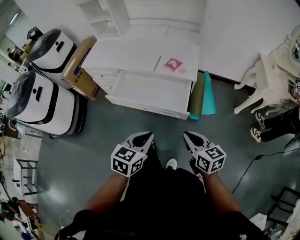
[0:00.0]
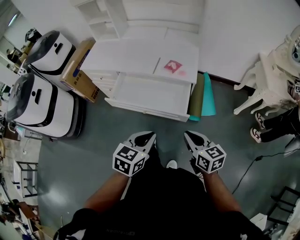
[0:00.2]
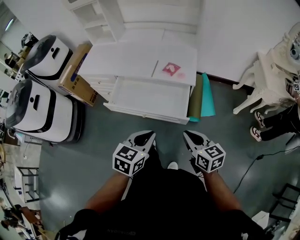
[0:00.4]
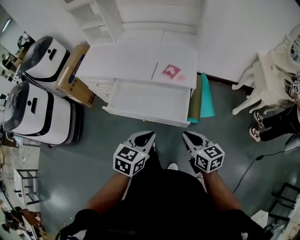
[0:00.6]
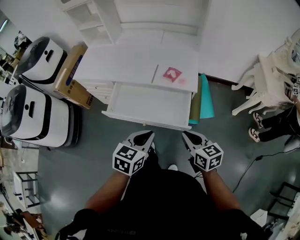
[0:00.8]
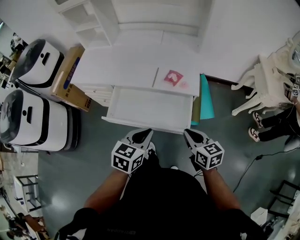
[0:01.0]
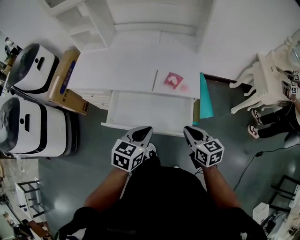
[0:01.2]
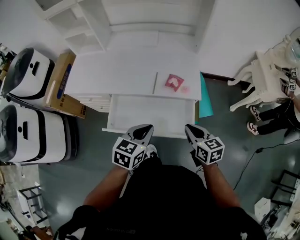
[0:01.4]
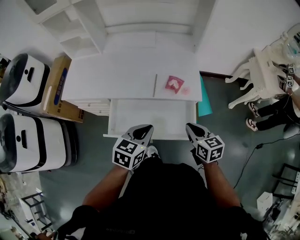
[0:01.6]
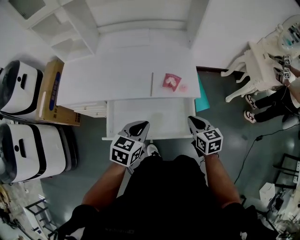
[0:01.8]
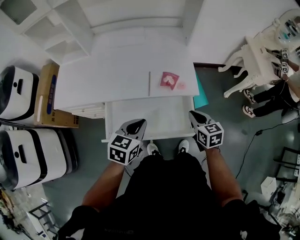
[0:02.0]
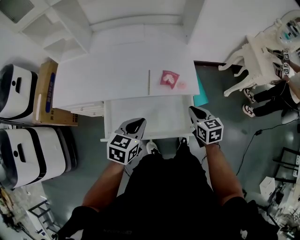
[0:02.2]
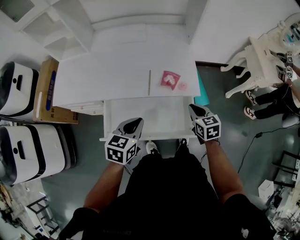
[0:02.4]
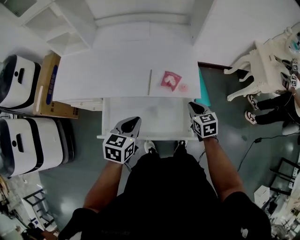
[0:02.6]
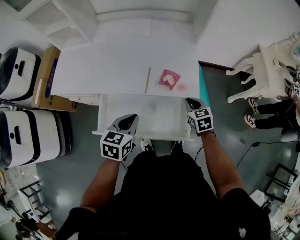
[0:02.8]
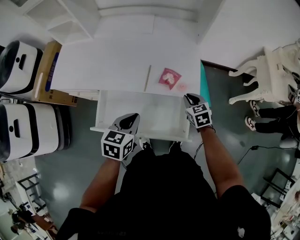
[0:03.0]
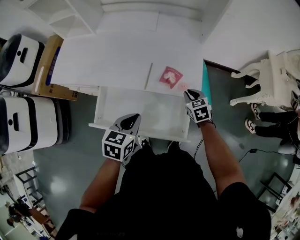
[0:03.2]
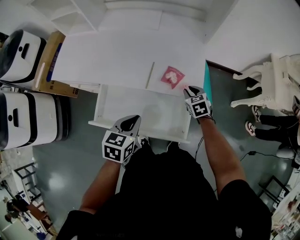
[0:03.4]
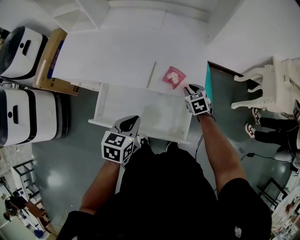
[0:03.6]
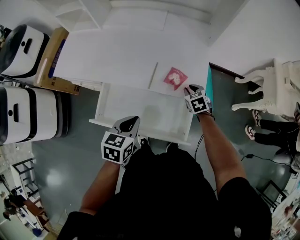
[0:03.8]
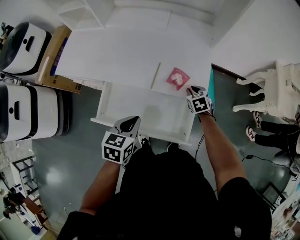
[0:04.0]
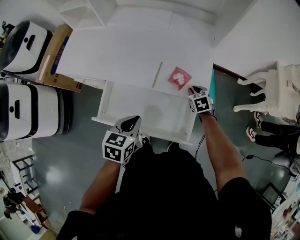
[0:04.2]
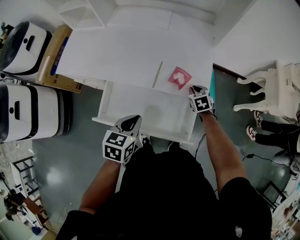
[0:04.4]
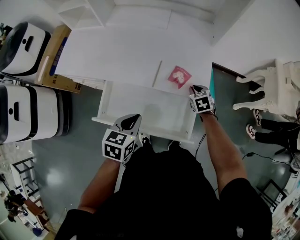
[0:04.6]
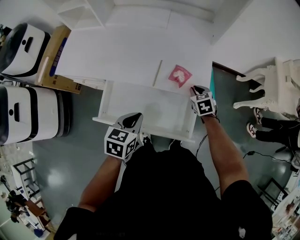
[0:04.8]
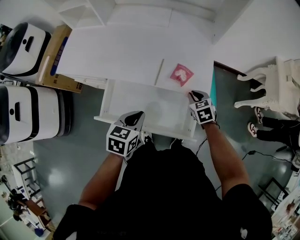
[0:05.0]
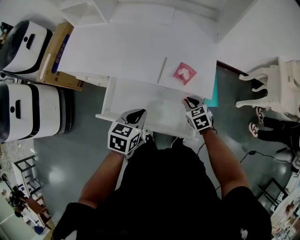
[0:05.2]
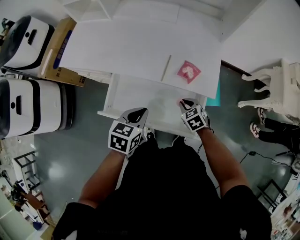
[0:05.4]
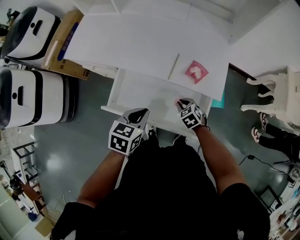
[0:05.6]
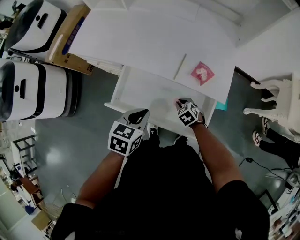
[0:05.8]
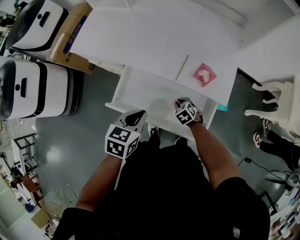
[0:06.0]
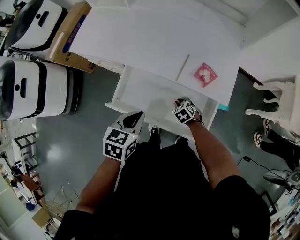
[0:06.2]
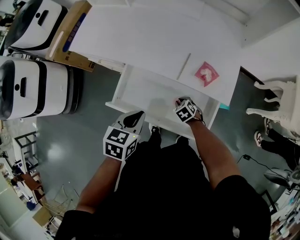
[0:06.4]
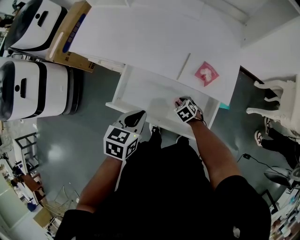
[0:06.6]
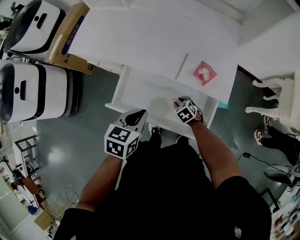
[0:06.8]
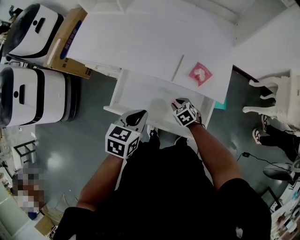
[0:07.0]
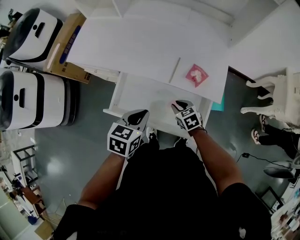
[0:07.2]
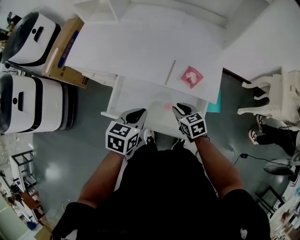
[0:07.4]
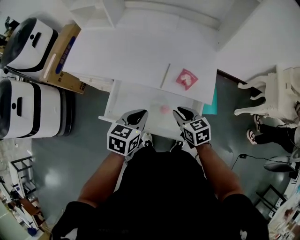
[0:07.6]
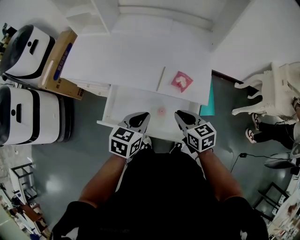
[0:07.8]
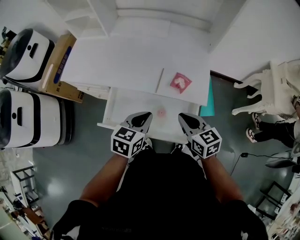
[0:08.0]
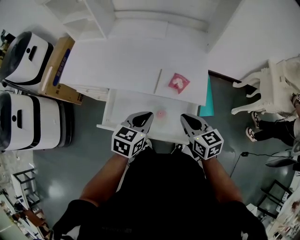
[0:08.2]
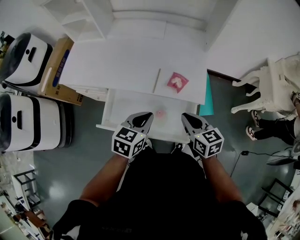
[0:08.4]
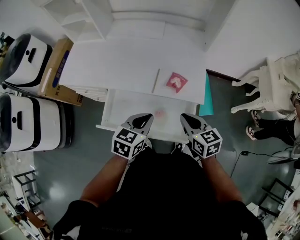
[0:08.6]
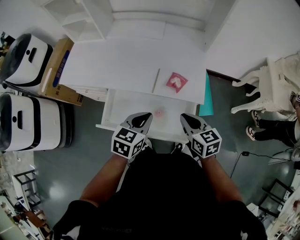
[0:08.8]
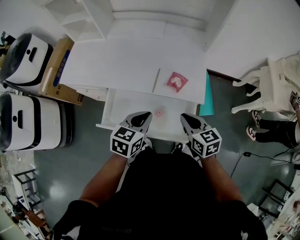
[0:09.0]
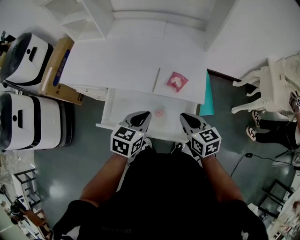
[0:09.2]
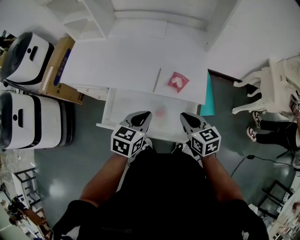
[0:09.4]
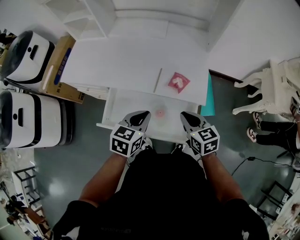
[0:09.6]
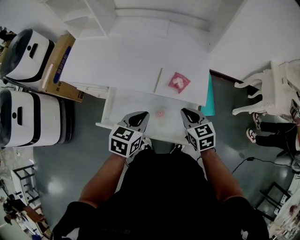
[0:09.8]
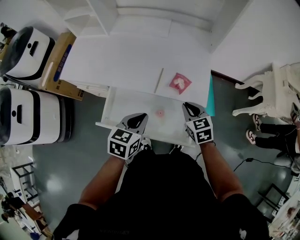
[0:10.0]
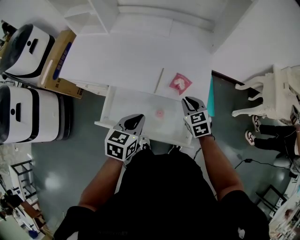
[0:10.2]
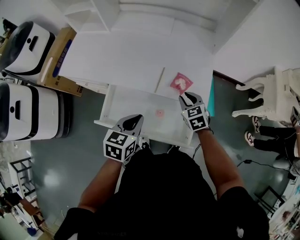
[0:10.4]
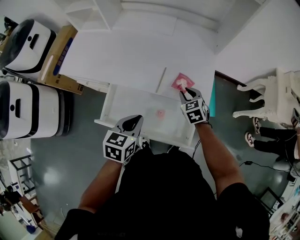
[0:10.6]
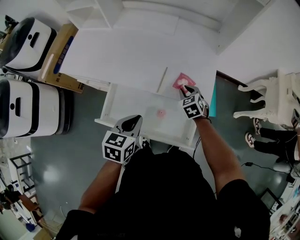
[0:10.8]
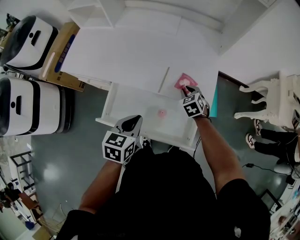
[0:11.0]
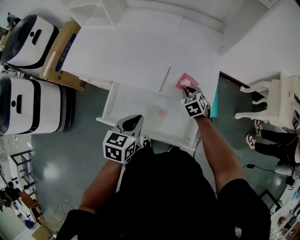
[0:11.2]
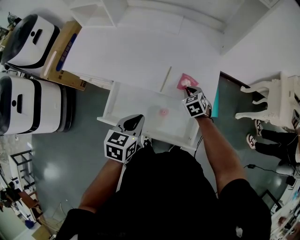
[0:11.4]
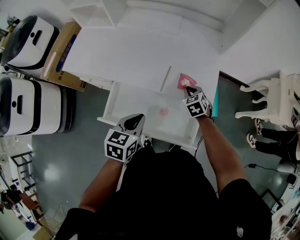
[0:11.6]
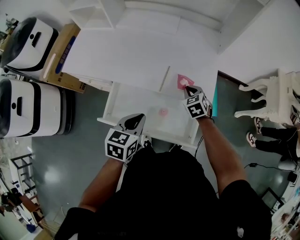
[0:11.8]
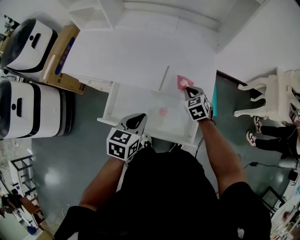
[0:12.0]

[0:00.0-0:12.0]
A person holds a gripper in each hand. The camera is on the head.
0:00.0 to 0:01.6: Both grippers move forward, roughly 25 cm.
0:01.6 to 0:03.0: The right gripper heads forward and downward, covering about 20 cm, and turns by roughly 20 degrees. Meanwhile the left gripper goes some 5 cm forward.
0:03.0 to 0:04.4: The right gripper heads forward and downward, covering about 10 cm.
0:04.4 to 0:06.0: The right gripper is displaced to the left, backward and downward by approximately 25 cm, and swivels about 30 degrees, while the left gripper shifts some 5 cm to the left.
0:06.0 to 0:07.6: The left gripper shifts by roughly 5 cm. Meanwhile the right gripper moves upward, about 20 cm, and turns by some 40 degrees.
0:07.6 to 0:09.0: The right gripper goes roughly 10 cm upward and to the right; the left gripper moves to the right, about 5 cm.
0:09.0 to 0:10.4: The right gripper moves forward and downward, approximately 15 cm, and changes its angle by approximately 30 degrees.

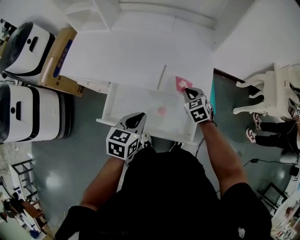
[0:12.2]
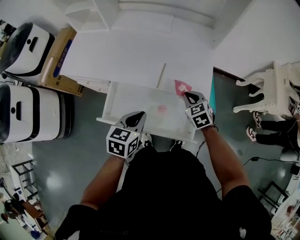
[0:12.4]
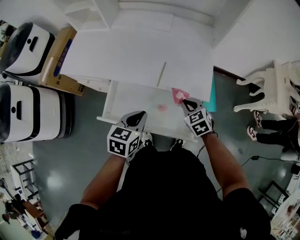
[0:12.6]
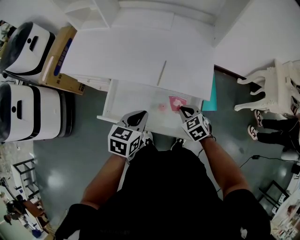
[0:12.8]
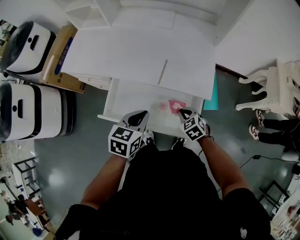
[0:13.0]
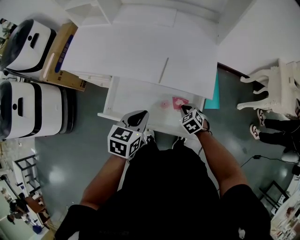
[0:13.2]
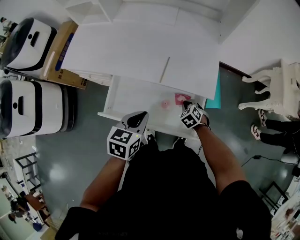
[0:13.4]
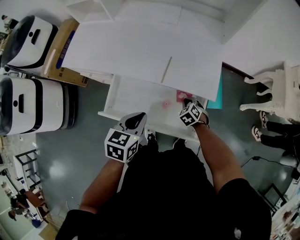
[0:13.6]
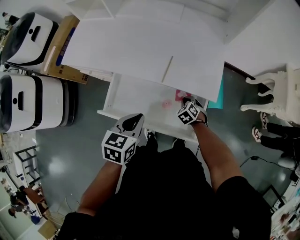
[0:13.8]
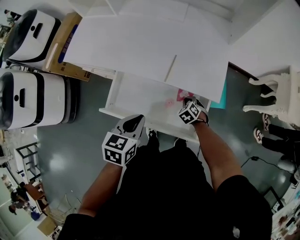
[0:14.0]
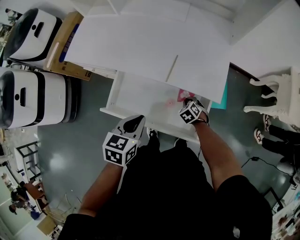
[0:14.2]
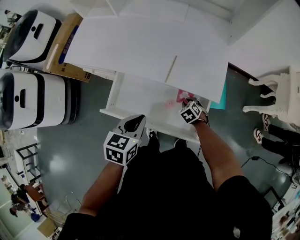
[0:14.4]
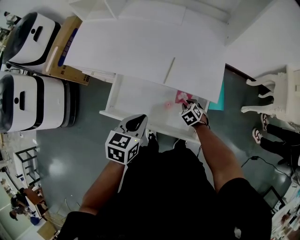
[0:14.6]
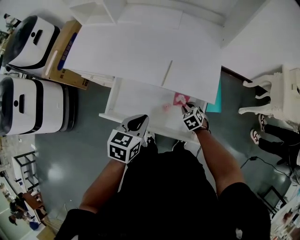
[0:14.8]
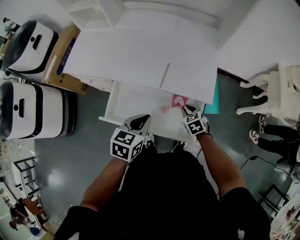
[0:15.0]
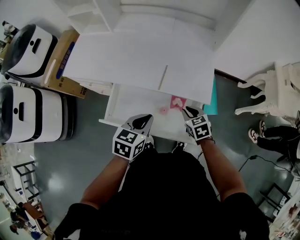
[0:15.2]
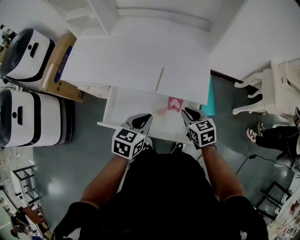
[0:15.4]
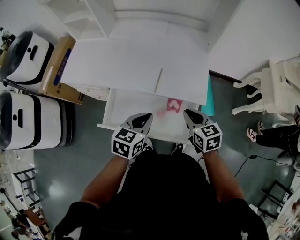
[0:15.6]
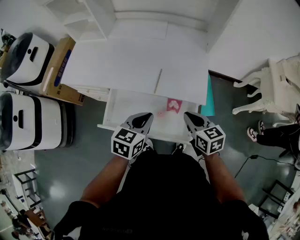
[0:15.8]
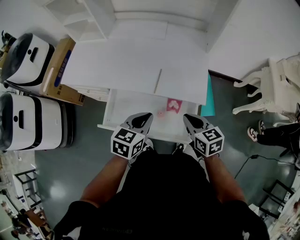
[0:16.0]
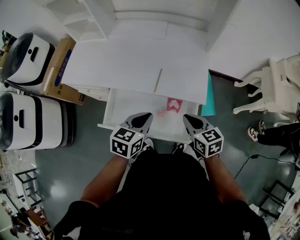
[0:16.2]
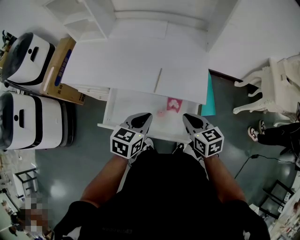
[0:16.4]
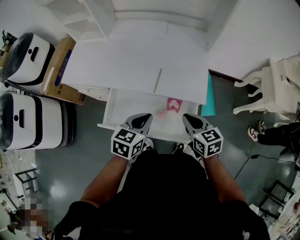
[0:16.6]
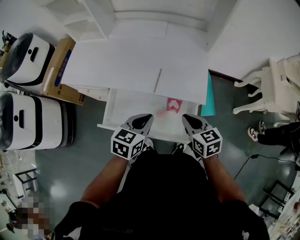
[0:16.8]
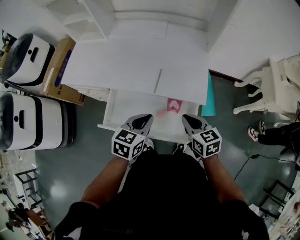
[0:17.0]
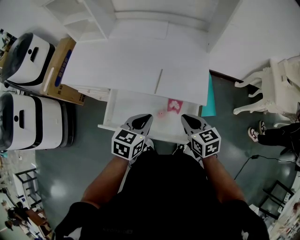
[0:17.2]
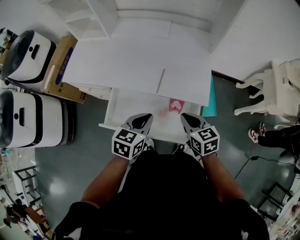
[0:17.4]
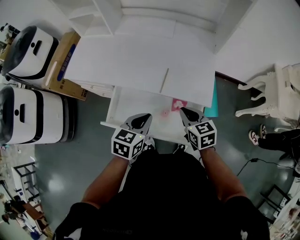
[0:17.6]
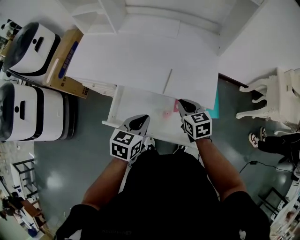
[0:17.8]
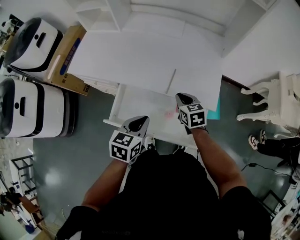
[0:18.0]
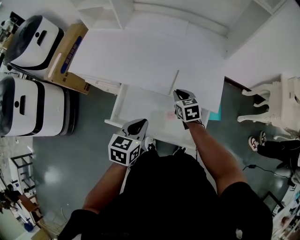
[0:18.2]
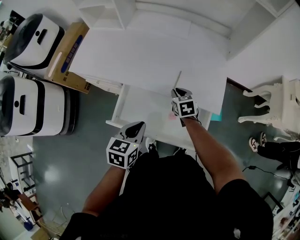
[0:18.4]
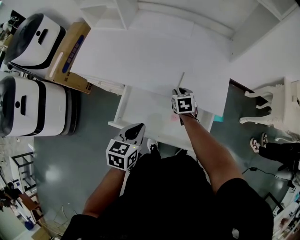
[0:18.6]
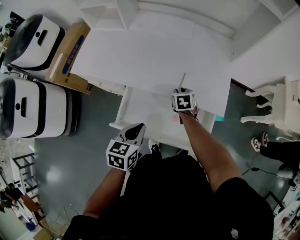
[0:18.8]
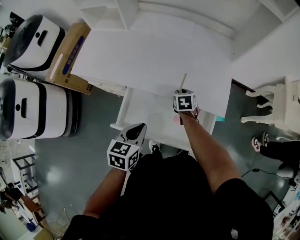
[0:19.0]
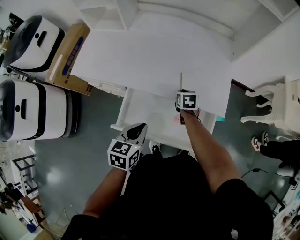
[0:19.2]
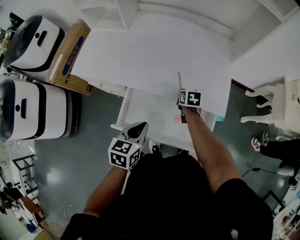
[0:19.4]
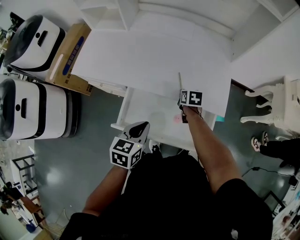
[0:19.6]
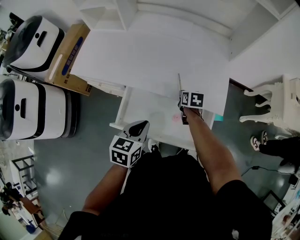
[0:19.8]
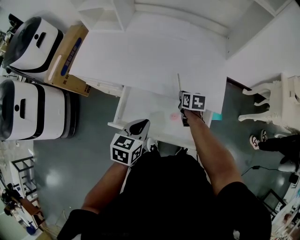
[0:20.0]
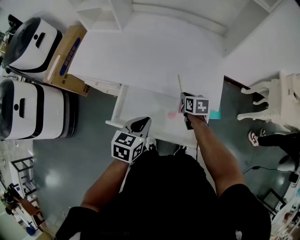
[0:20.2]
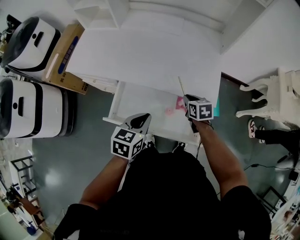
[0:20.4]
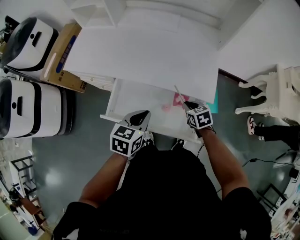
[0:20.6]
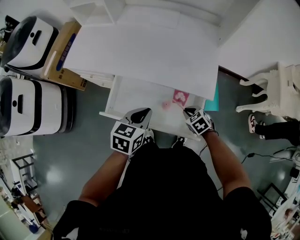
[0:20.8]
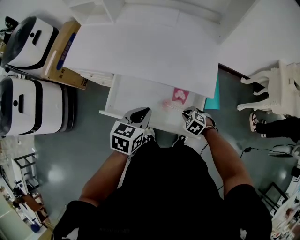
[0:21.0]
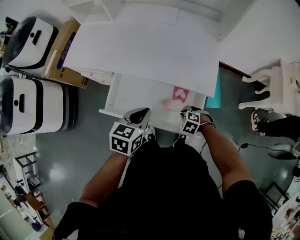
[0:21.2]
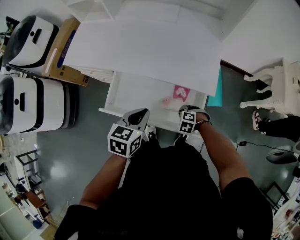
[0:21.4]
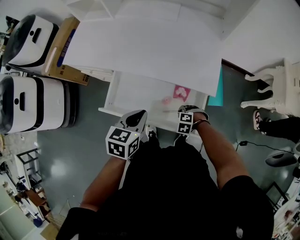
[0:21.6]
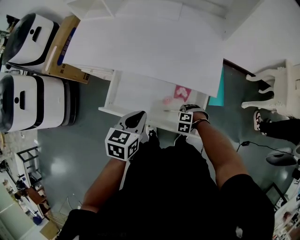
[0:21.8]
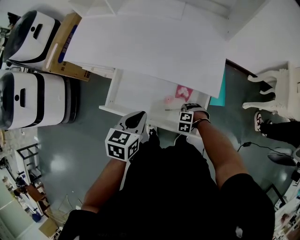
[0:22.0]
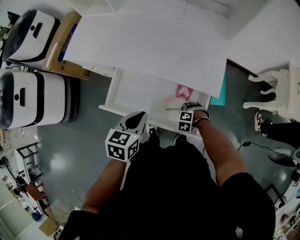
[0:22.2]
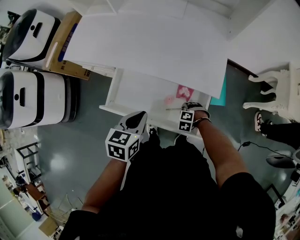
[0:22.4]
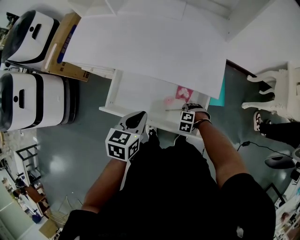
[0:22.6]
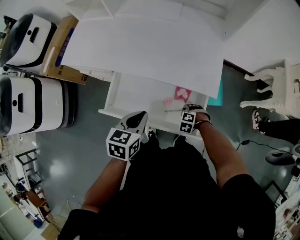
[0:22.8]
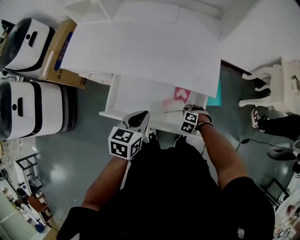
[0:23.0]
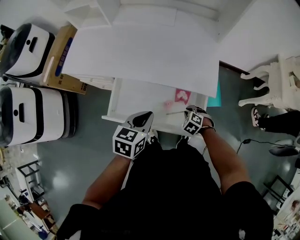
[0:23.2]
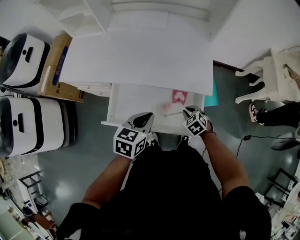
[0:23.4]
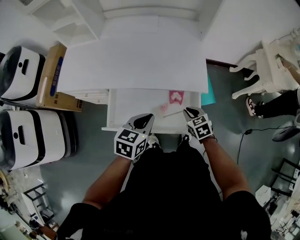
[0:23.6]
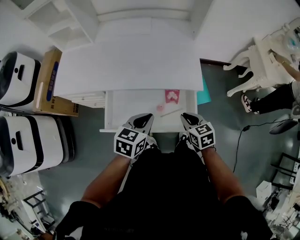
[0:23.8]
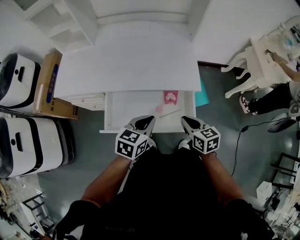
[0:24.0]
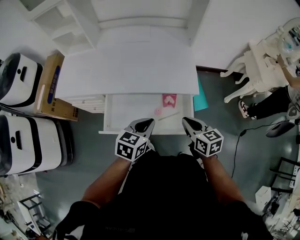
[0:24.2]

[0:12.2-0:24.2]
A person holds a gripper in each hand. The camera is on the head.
0:12.2 to 0:13.8: The right gripper travels downward by some 15 cm, and turns by roughly 20 degrees.
0:13.8 to 0:15.2: The right gripper moves upward, roughly 15 cm, and rotates some 30 degrees.
0:15.2 to 0:16.6: The right gripper shifts about 10 cm upward.
0:16.6 to 0:18.2: The left gripper is displaced to the left by some 10 cm, while the right gripper heads forward, to the left and downward, covering some 20 cm.
0:18.2 to 0:19.8: The right gripper moves downward, roughly 5 cm, and rotates approximately 30 degrees.
0:19.8 to 0:21.2: The left gripper goes about 10 cm to the right, while the right gripper travels backward by roughly 20 cm, and twists about 70 degrees counterclockwise, seen from behind.
0:21.2 to 0:22.6: The right gripper shifts about 5 cm downward.
0:22.6 to 0:24.2: The left gripper changes place by some 5 cm, and turns by some 30 degrees, while the right gripper heads upward, covering some 30 cm, and rotates around the line of its fingers by roughly 80 degrees, clockwise from behind.
